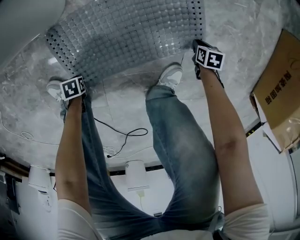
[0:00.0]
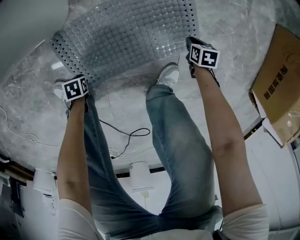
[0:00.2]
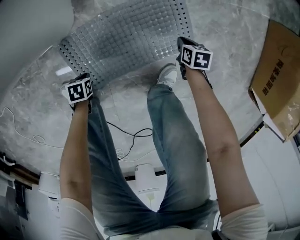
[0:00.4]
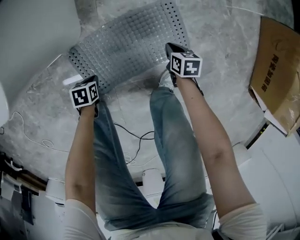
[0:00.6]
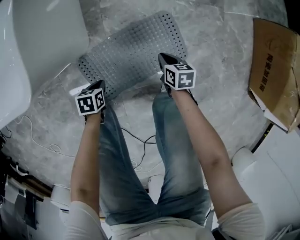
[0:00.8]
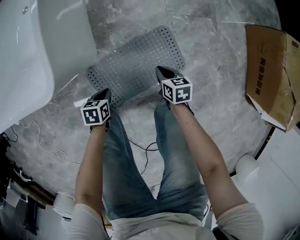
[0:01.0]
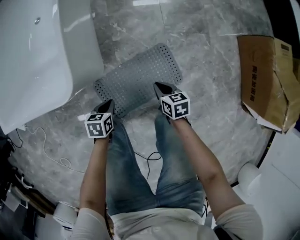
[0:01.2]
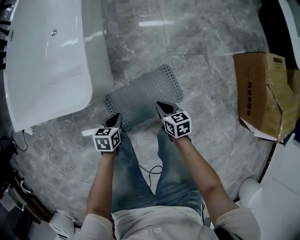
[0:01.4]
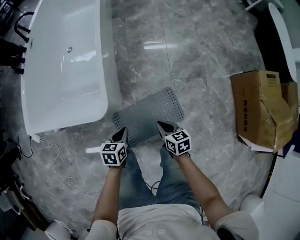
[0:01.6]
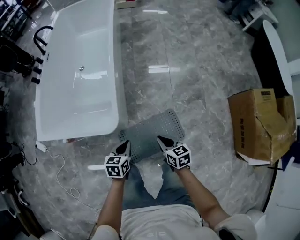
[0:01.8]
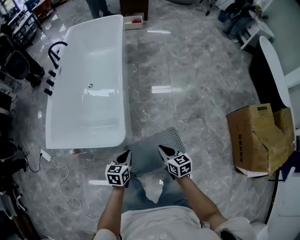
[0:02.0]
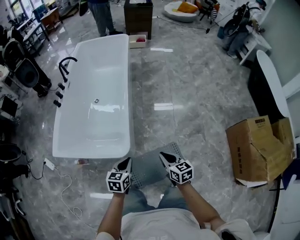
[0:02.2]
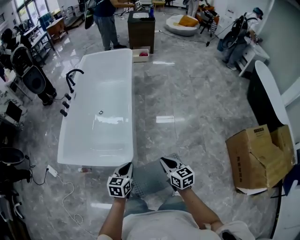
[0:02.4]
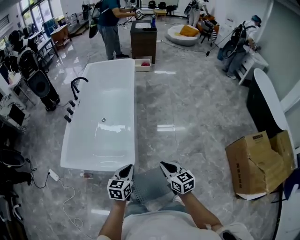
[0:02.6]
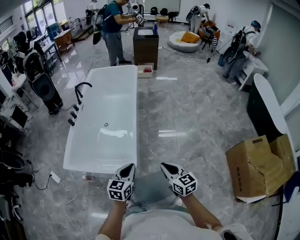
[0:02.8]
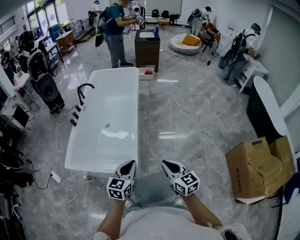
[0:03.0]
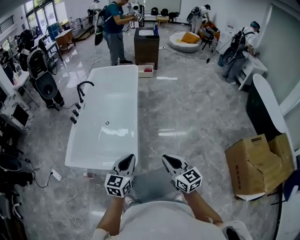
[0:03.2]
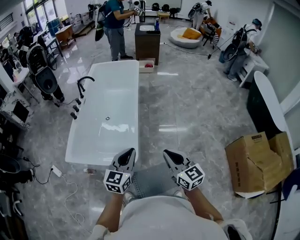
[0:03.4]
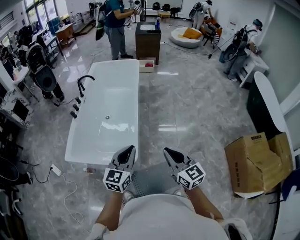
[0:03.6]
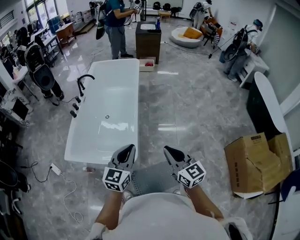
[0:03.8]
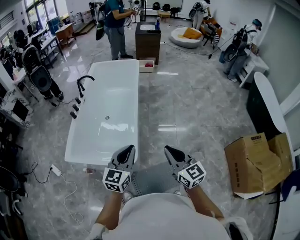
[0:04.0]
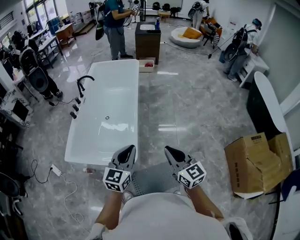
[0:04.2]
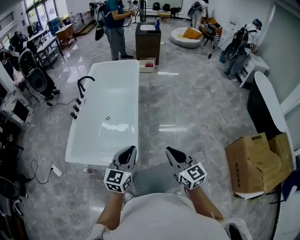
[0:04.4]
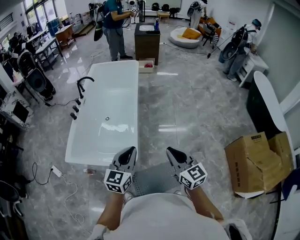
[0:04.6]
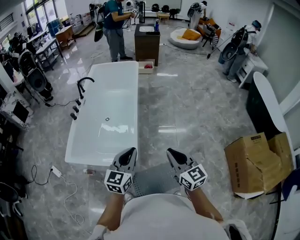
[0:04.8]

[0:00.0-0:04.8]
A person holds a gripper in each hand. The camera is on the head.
0:00.0 to 0:01.6: Both grippers travel together upward, approximately 60 cm. The left gripper points its fingers about 30 degrees further upward, while the right gripper angles its fingers upward, by some 40 degrees.
0:01.6 to 0:03.2: The grippers both shift upward by some 50 cm. The left gripper tips its fingers upward by some 40 degrees. Meanwhile the right gripper tips its fingers upward by some 30 degrees.
0:03.2 to 0:04.8: The grippers move only a little.

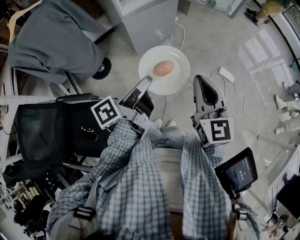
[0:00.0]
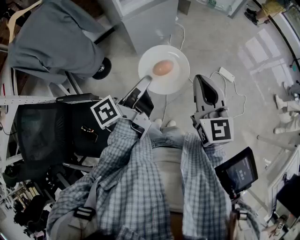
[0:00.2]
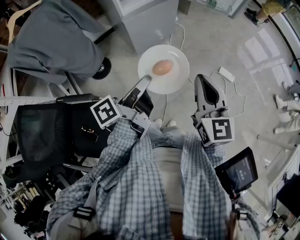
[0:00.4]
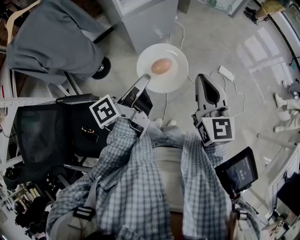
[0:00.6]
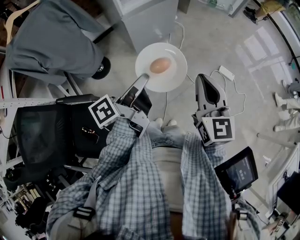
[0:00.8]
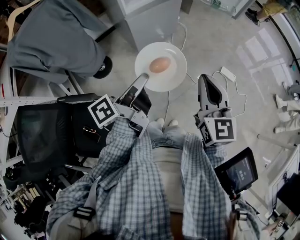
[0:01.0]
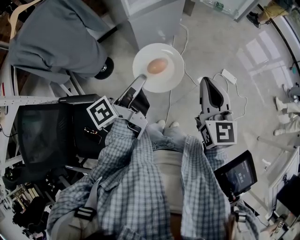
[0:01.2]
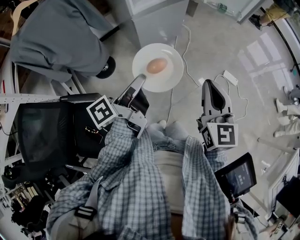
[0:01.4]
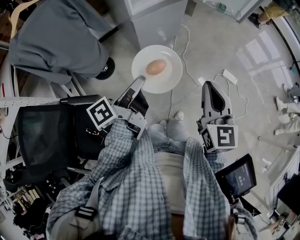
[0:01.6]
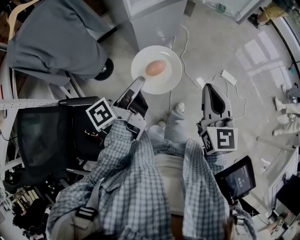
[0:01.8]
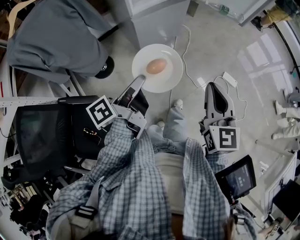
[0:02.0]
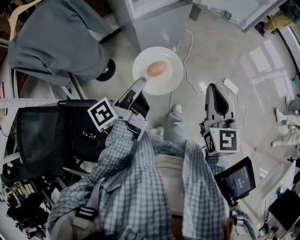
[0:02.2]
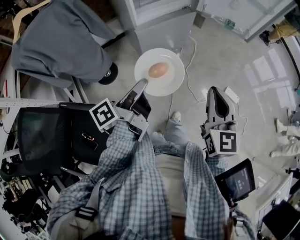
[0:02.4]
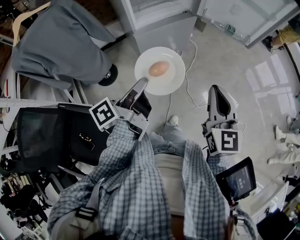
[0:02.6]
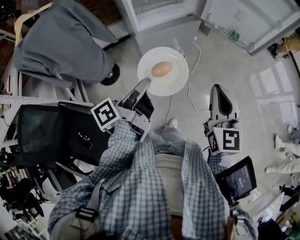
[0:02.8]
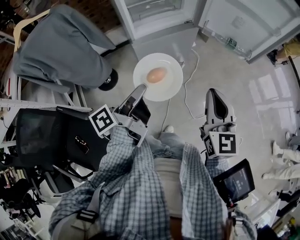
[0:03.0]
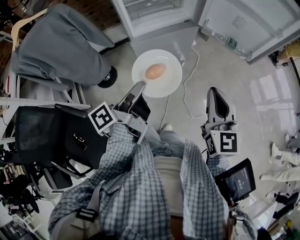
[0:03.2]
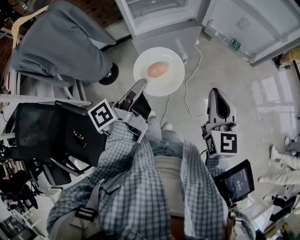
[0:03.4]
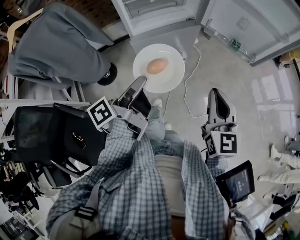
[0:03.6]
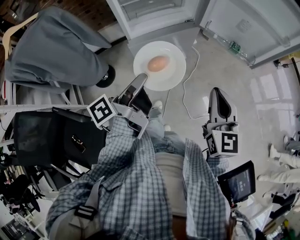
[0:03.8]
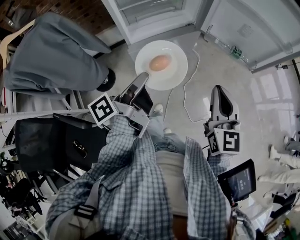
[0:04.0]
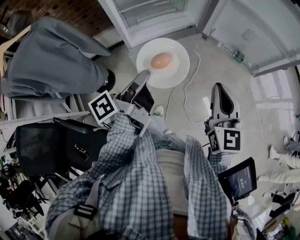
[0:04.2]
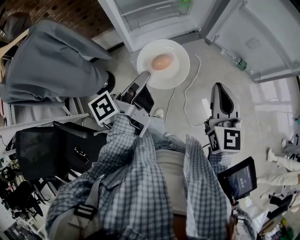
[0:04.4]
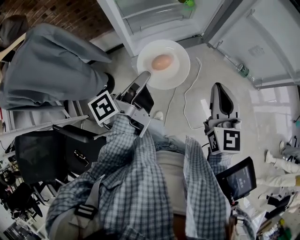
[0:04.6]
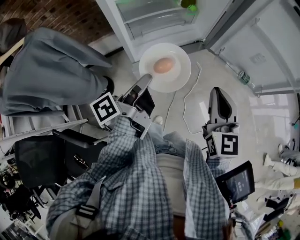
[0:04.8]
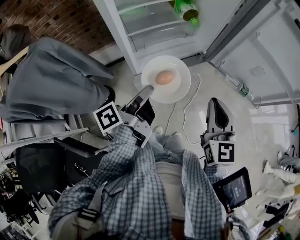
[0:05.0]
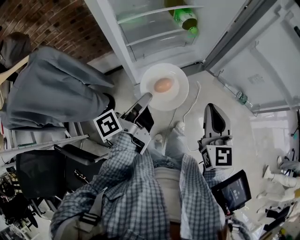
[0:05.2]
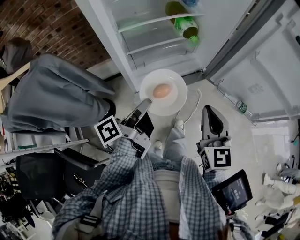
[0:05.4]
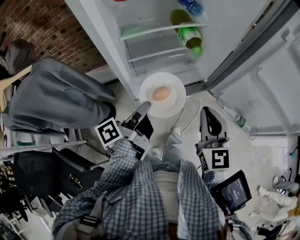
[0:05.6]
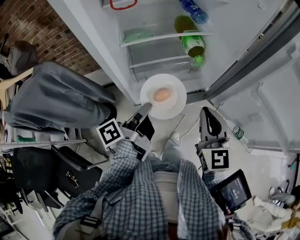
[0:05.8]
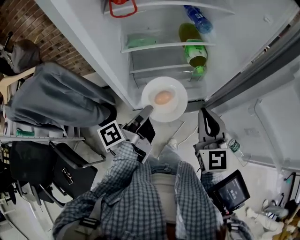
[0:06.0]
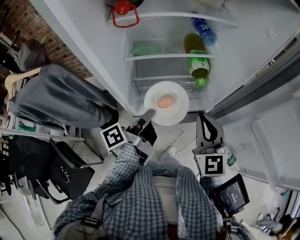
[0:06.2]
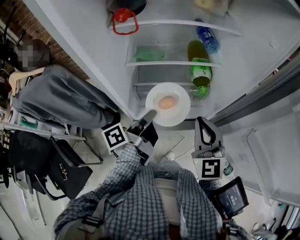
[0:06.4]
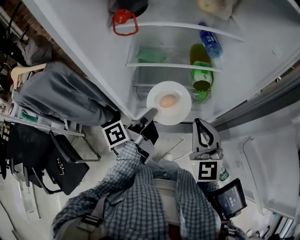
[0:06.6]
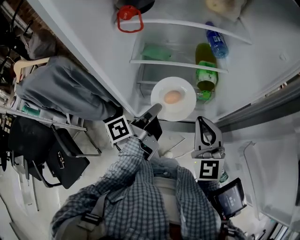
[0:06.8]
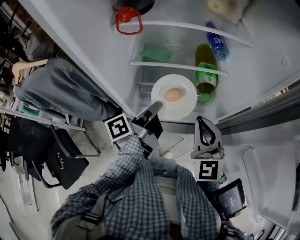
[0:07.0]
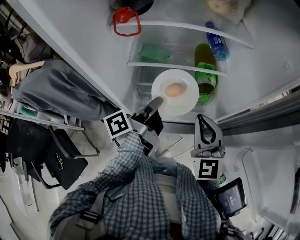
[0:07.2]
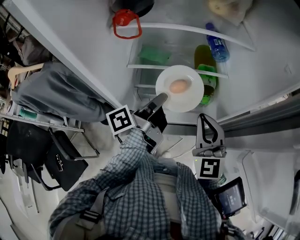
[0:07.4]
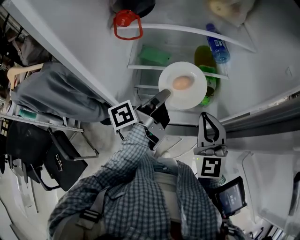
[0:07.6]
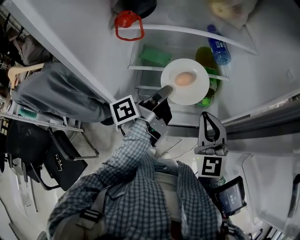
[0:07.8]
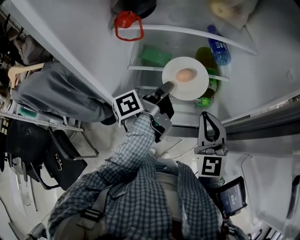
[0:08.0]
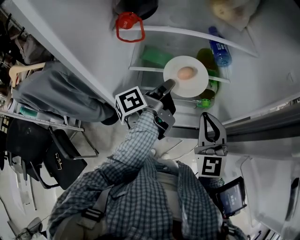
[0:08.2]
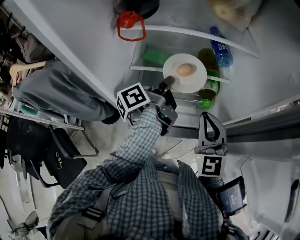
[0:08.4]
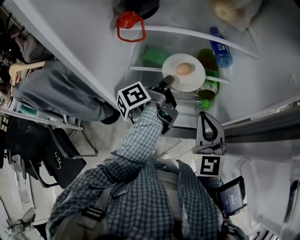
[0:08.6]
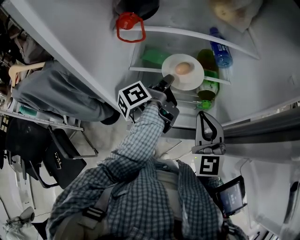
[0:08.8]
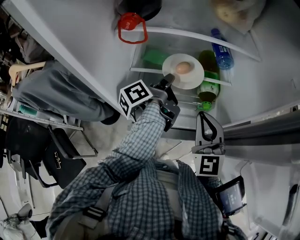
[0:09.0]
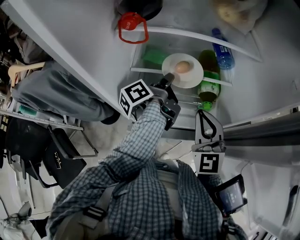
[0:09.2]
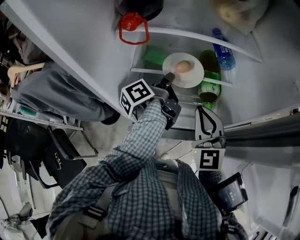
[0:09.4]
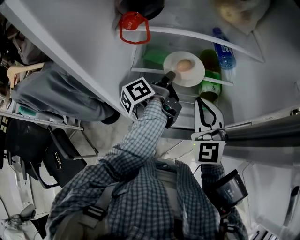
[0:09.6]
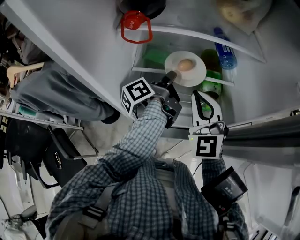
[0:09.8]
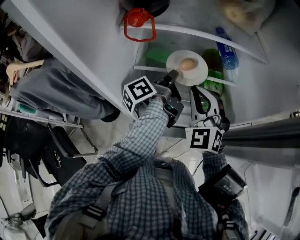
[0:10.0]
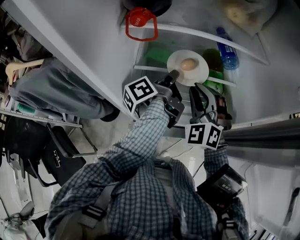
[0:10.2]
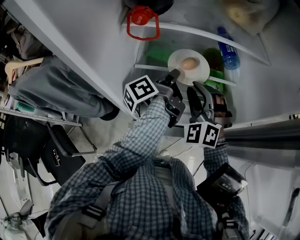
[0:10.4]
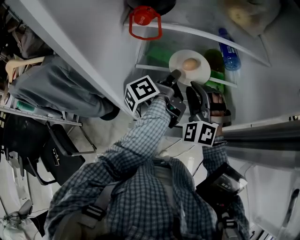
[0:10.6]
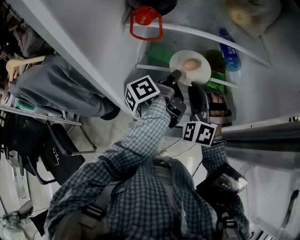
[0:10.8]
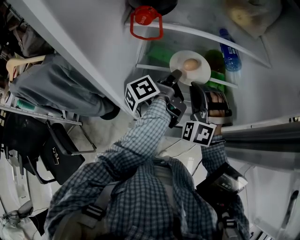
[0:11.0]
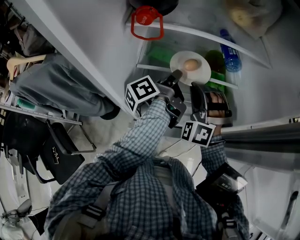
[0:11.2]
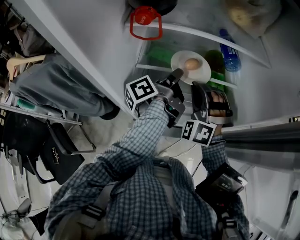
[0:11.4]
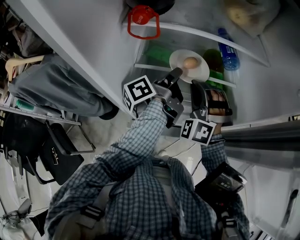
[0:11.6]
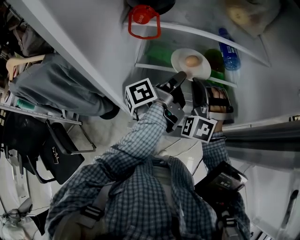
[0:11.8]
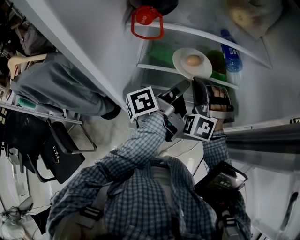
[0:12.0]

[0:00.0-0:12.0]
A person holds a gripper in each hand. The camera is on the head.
0:01.6 to 0:03.0: The right gripper ends up about 25 cm from where it was.
0:03.0 to 0:04.4: The right gripper shifts by approximately 20 cm.
0:04.4 to 0:06.0: The right gripper ends up approximately 25 cm from where it was, and turns by about 20 degrees.
0:06.0 to 0:07.6: The right gripper ends up roughly 10 cm from where it was.
0:09.0 to 0:10.4: The right gripper changes place by some 10 cm, rolls counterclockwise, seen from behind, by roughly 40 degrees, and opens.

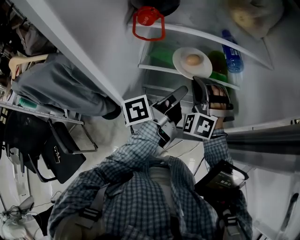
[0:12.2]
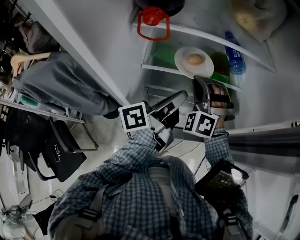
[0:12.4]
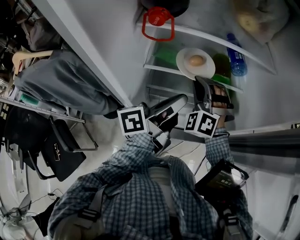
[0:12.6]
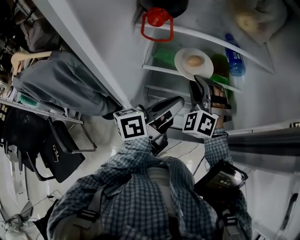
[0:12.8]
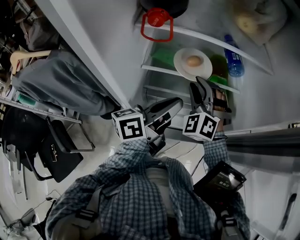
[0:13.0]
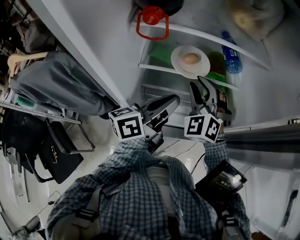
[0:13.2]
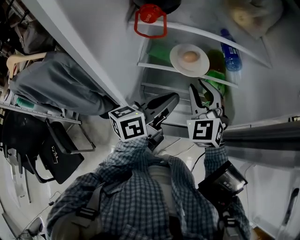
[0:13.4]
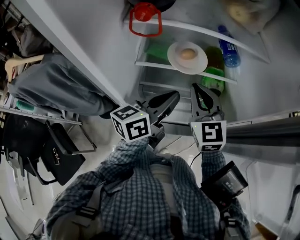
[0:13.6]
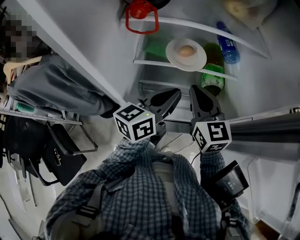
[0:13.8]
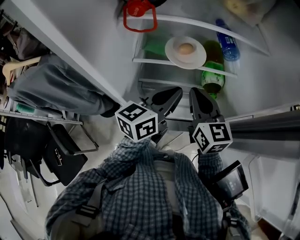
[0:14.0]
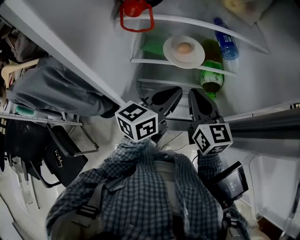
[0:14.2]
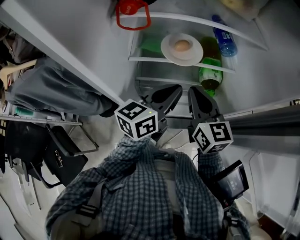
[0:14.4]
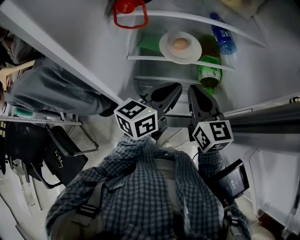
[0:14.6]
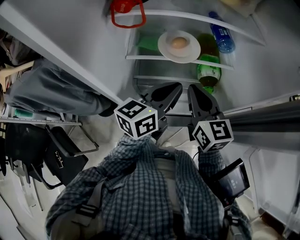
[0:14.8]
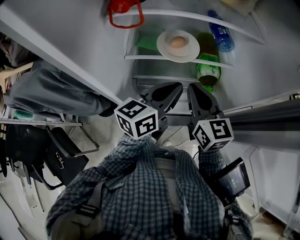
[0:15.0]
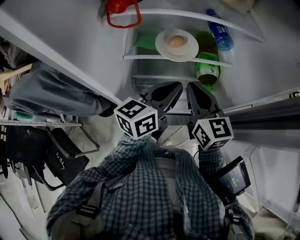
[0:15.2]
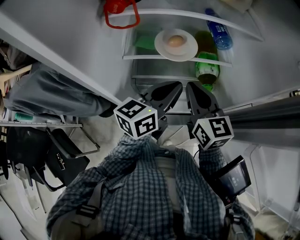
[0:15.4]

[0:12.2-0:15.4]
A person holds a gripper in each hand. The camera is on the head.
0:12.2 to 0:13.8: The right gripper ends up roughly 5 cm from where it was, rotates around the line of its fingers by about 80 degrees, clockwise from behind, and opens, then closes again.

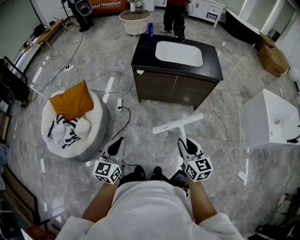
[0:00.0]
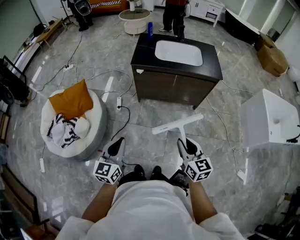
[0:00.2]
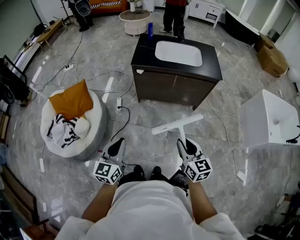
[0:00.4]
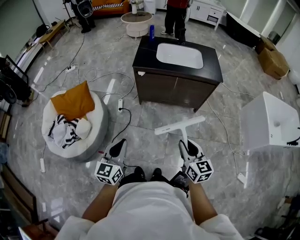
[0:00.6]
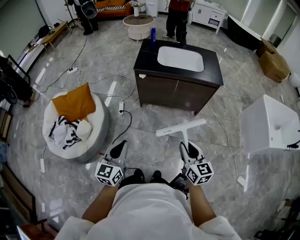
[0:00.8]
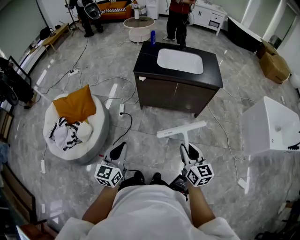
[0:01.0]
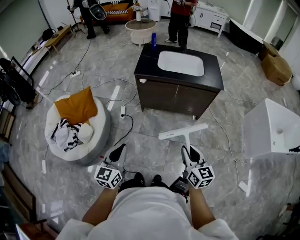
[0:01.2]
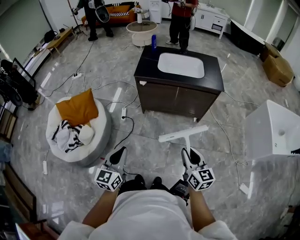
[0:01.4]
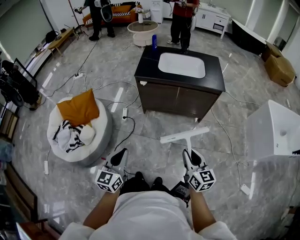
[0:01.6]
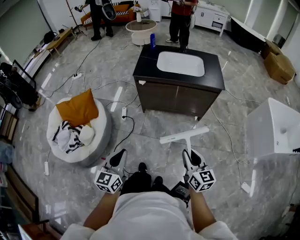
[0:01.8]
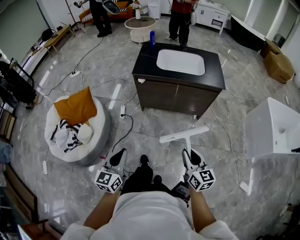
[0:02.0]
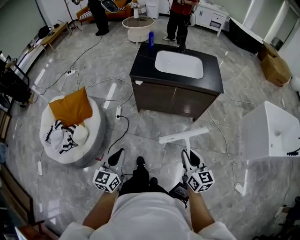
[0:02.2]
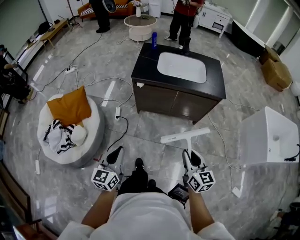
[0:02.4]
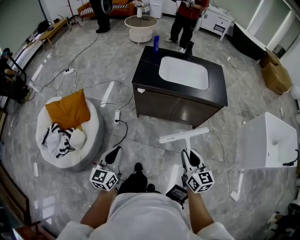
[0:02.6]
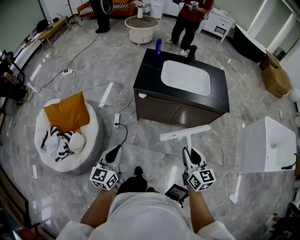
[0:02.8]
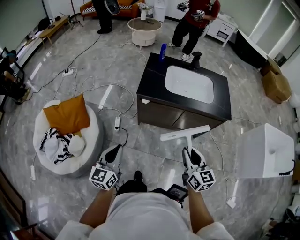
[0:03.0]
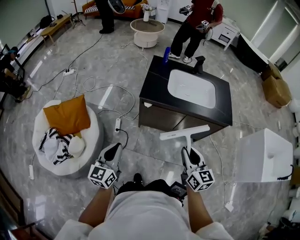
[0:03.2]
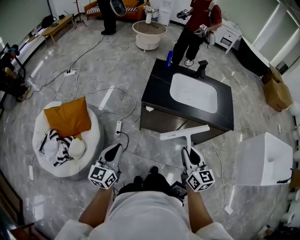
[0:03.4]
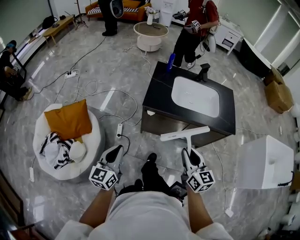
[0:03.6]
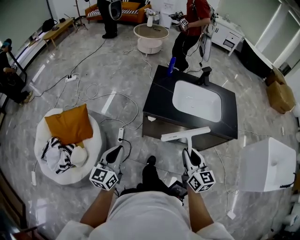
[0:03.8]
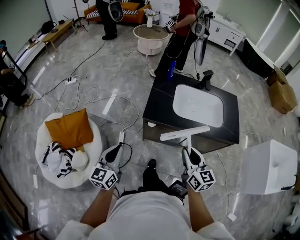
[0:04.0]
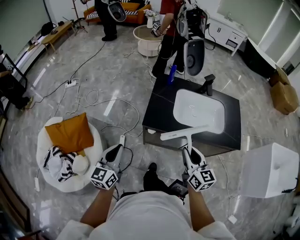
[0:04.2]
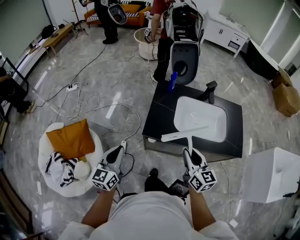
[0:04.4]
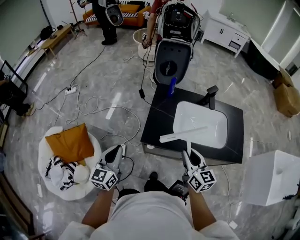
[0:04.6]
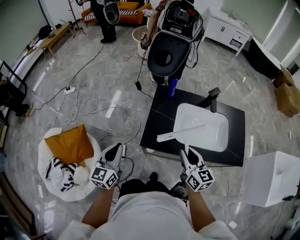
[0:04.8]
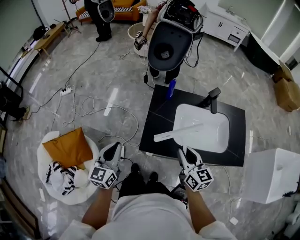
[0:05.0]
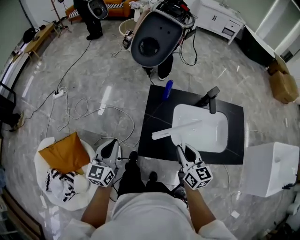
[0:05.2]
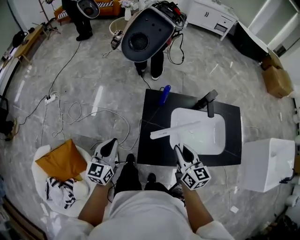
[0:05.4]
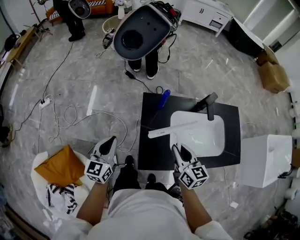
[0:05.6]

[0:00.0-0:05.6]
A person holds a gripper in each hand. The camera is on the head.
0:00.0 to 0:01.4: The grippers stay close to where they were, moving slightly.
0:01.4 to 0:02.8: Both grippers move forward, approximately 20 cm.
0:02.8 to 0:04.2: The grippers both shift forward by roughly 25 cm.
0:04.2 to 0:05.6: The two grippers go about 35 cm forward.
